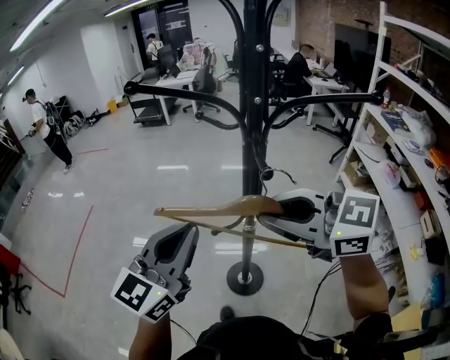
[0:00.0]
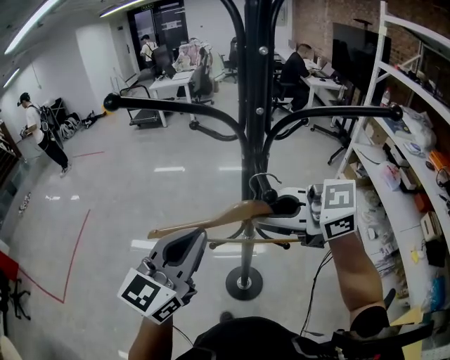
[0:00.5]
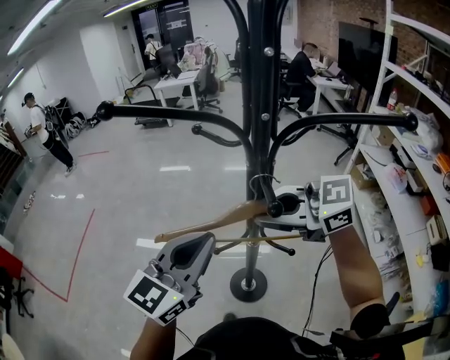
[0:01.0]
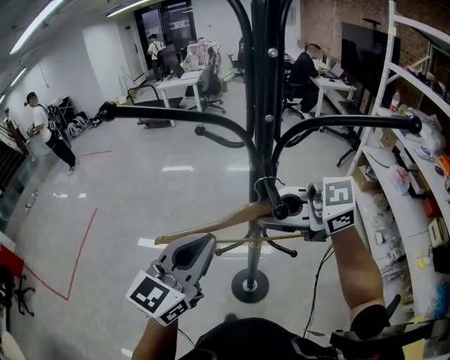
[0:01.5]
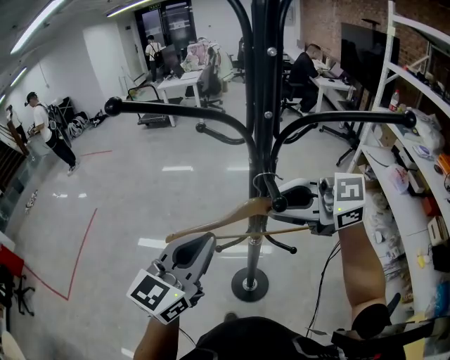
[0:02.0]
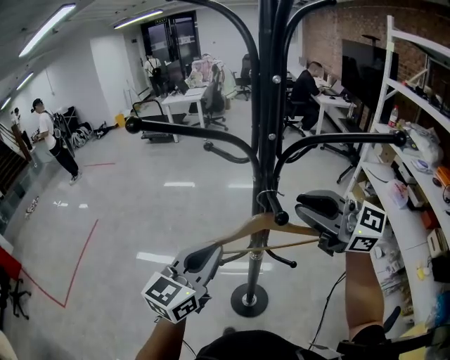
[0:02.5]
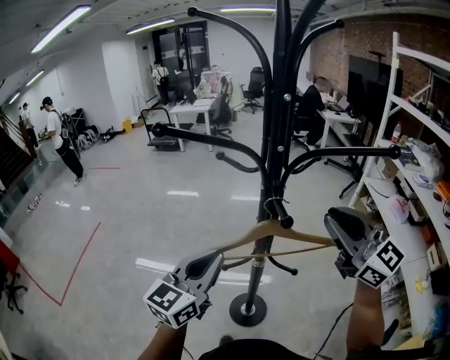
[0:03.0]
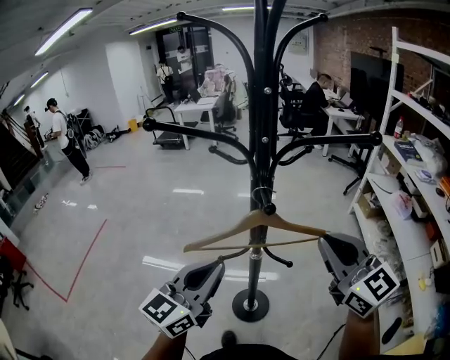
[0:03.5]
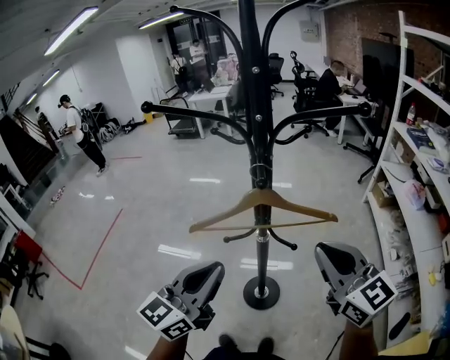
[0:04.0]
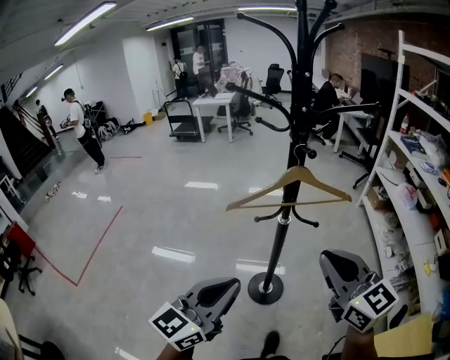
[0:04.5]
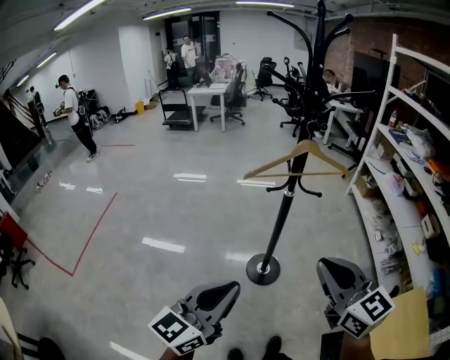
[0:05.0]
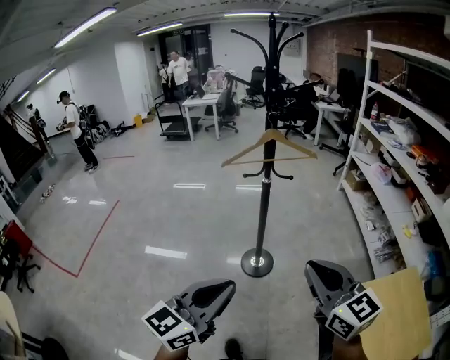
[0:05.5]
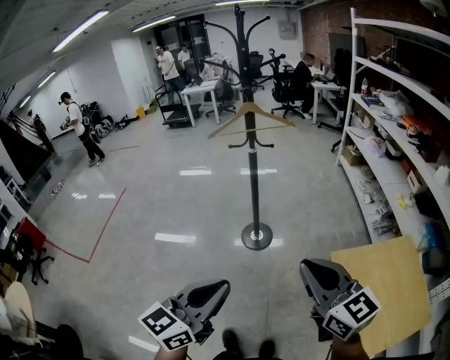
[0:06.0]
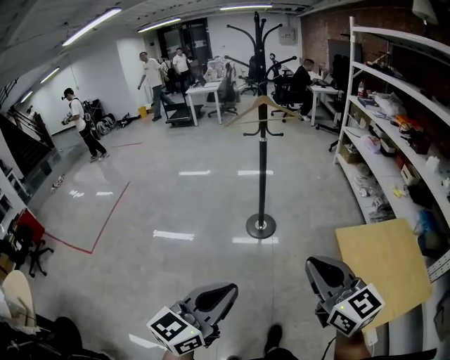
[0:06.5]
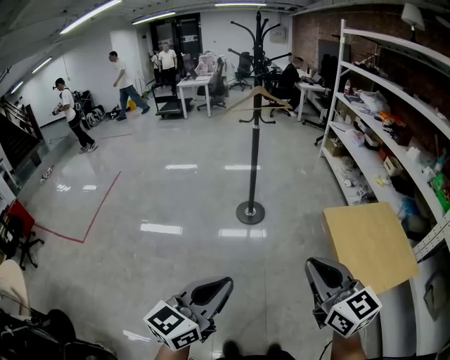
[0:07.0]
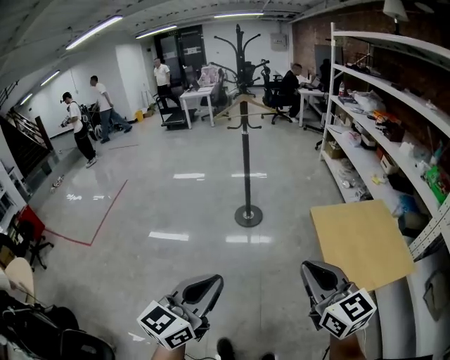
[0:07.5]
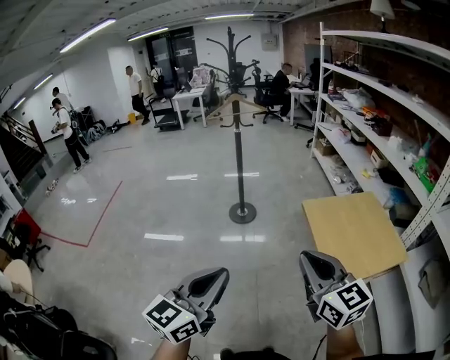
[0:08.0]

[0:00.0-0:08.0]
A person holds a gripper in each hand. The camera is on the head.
0:00.0 to 0:02.0: The left gripper ends up approximately 5 cm from where it was. Meanwhile the right gripper is displaced forward by approximately 5 cm.
0:02.0 to 0:04.0: The right gripper heads backward and to the right, covering approximately 15 cm, and changes its angle by roughly 50 degrees, while the left gripper goes approximately 10 cm backward.
0:04.0 to 0:06.0: Both grippers are carried backward, approximately 50 cm.
0:06.0 to 0:08.0: Both grippers travel together backward, approximately 30 cm.

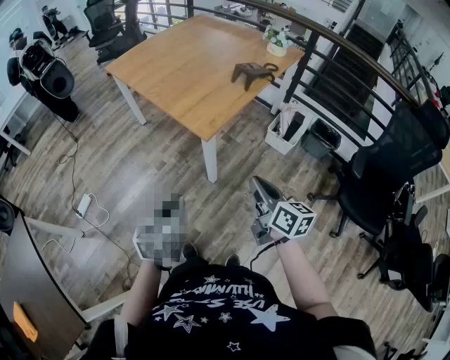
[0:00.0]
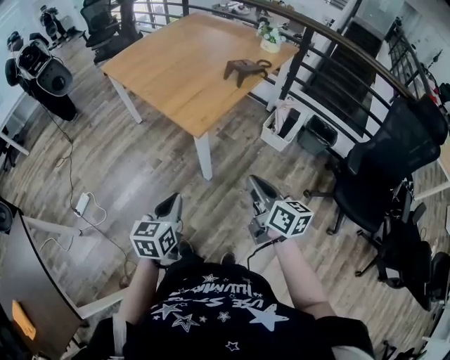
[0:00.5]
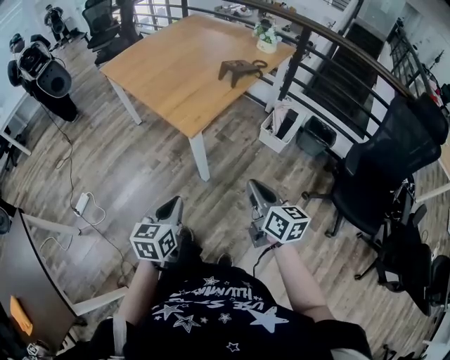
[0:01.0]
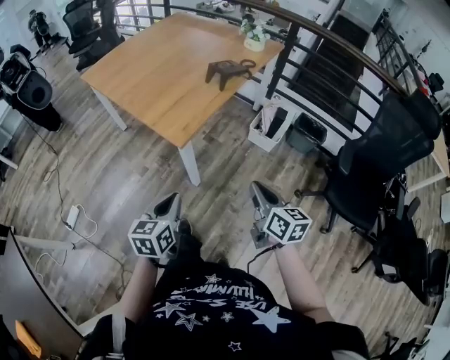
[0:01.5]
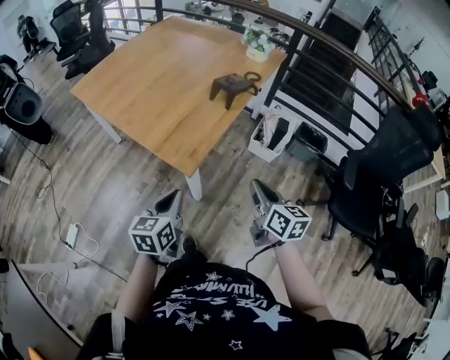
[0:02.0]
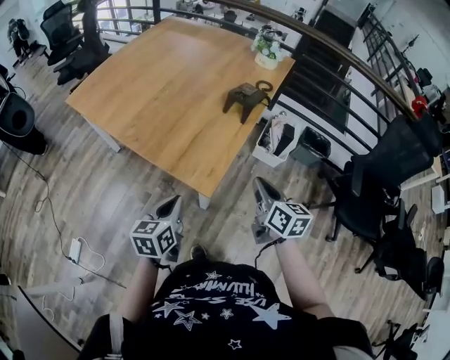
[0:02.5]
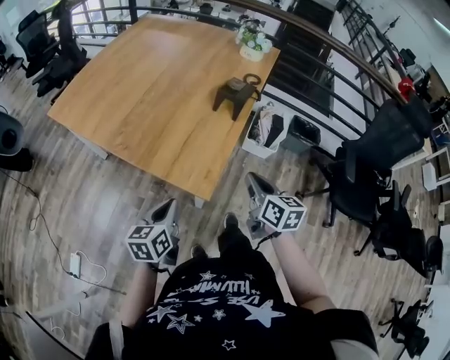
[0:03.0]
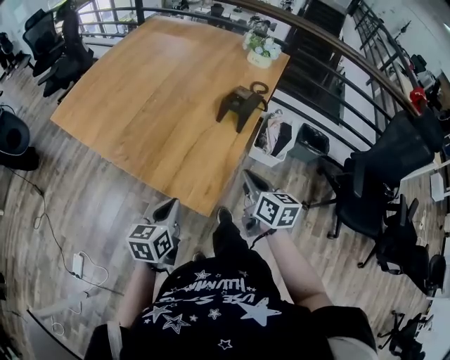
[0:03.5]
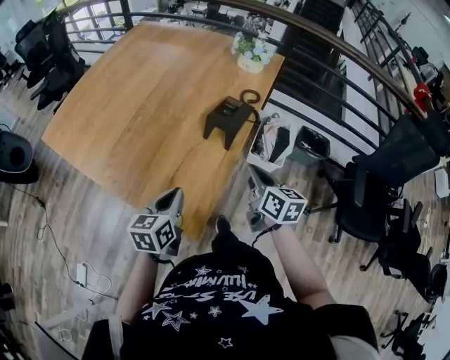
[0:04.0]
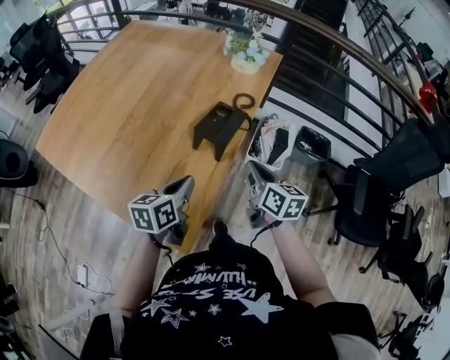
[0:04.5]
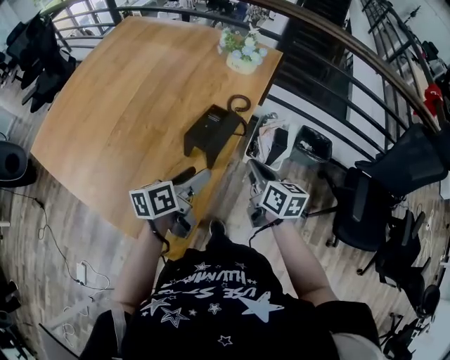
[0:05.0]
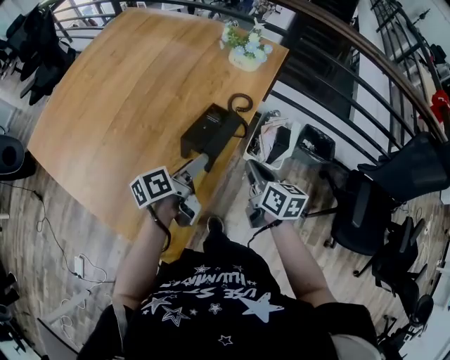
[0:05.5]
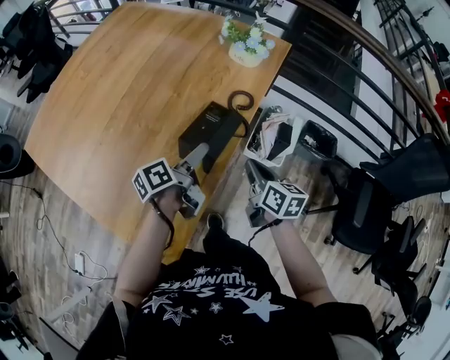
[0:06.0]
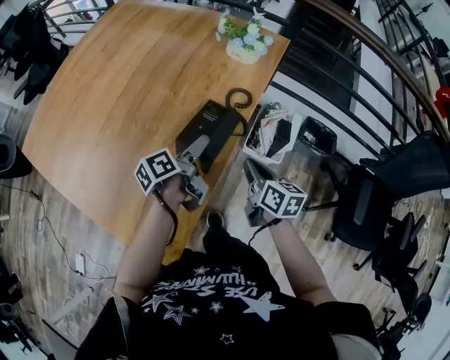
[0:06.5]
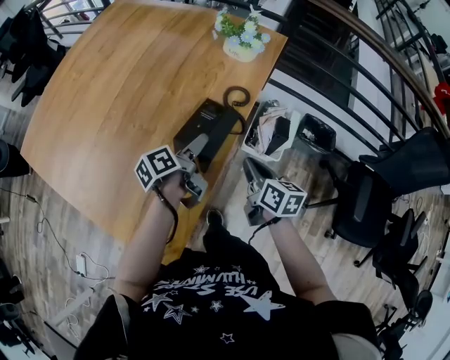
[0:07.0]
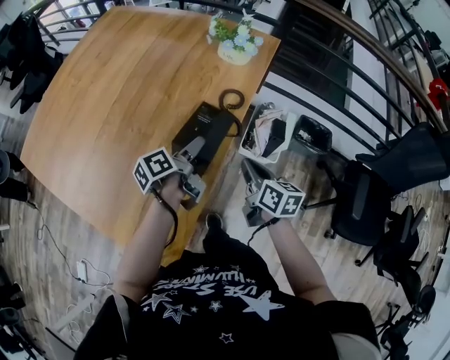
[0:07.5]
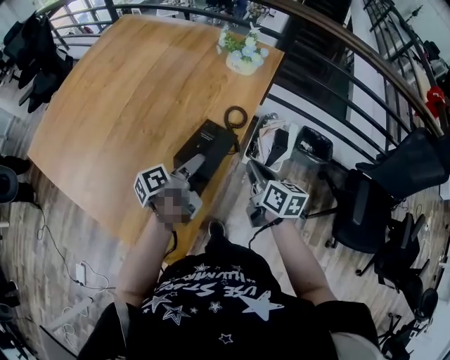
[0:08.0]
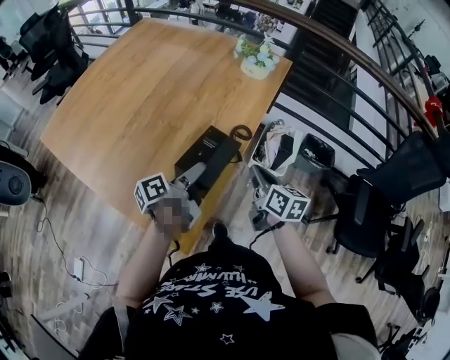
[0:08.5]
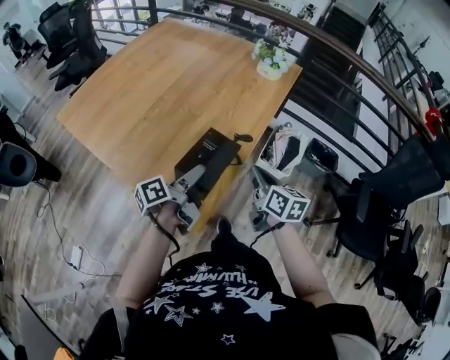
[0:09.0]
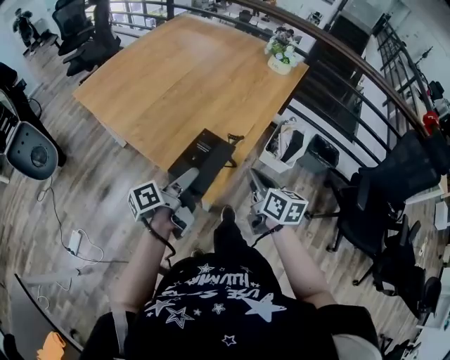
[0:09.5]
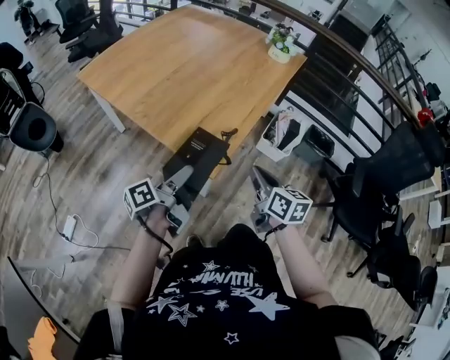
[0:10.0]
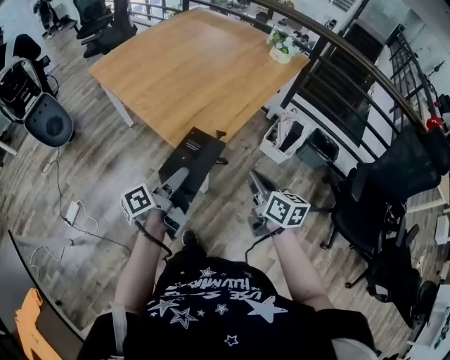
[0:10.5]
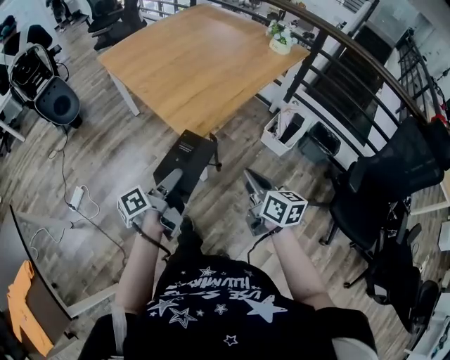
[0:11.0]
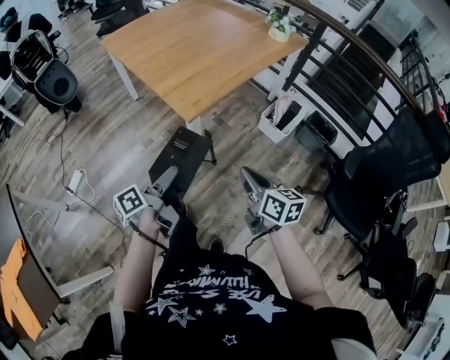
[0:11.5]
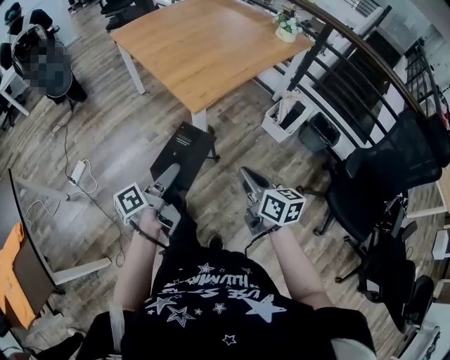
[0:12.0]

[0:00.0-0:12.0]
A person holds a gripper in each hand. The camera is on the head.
0:00.0 to 0:02.0: The grippers both shift forward by about 15 cm.
0:02.0 to 0:04.0: Both grippers move forward, about 25 cm.
0:04.0 to 0:06.0: The right gripper moves forward, downward and to the right, roughly 15 cm. Meanwhile the left gripper heads forward and to the right, covering some 25 cm, rolls counterclockwise, seen from behind, by about 50 degrees, and opens its fingers.
0:06.0 to 0:08.0: The left gripper closes.
0:08.0 to 0:10.0: The left gripper shifts about 40 cm backward and to the left. The right gripper is displaced backward by approximately 35 cm.
0:10.0 to 0:12.0: The grippers both shift backward by approximately 25 cm. The right gripper swivels approximately 20 degrees.

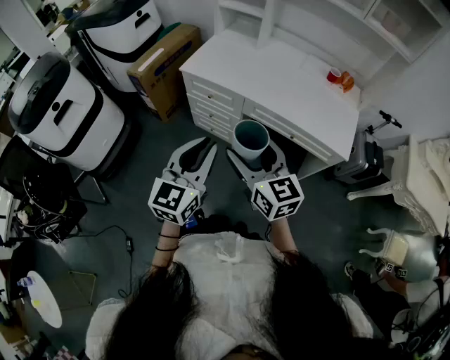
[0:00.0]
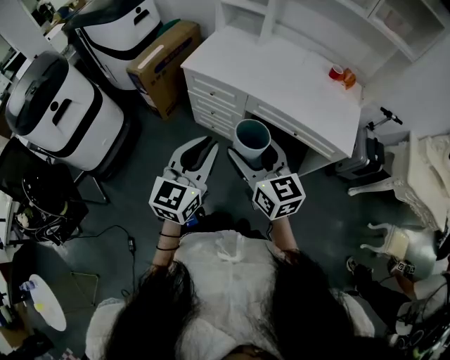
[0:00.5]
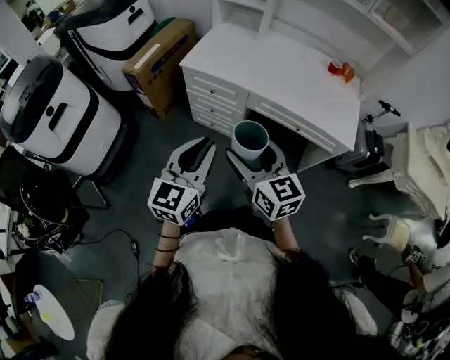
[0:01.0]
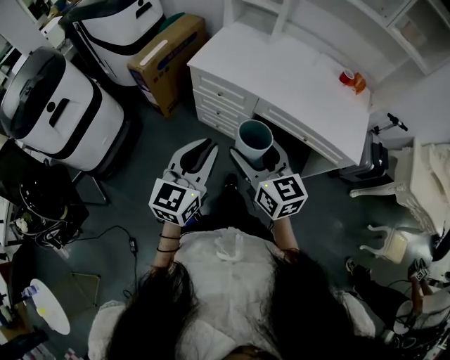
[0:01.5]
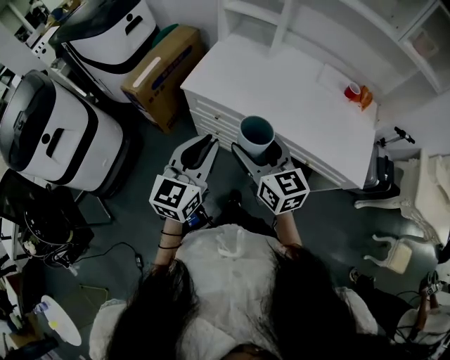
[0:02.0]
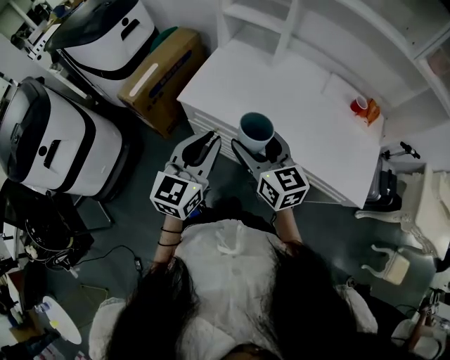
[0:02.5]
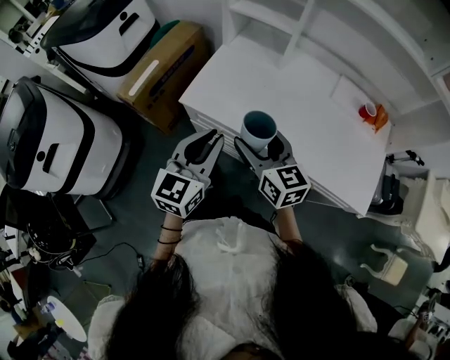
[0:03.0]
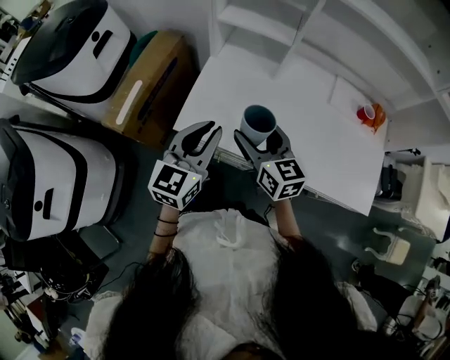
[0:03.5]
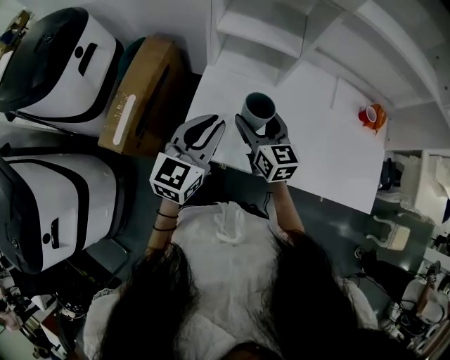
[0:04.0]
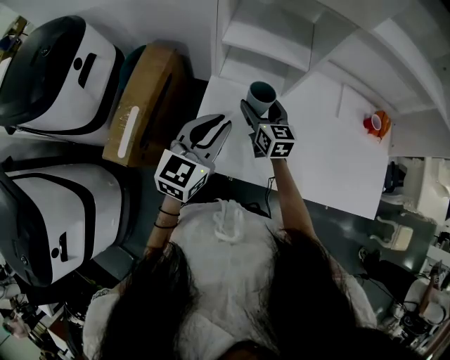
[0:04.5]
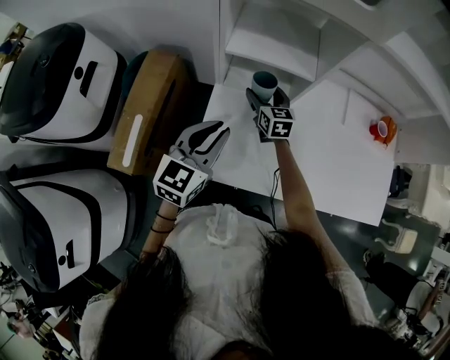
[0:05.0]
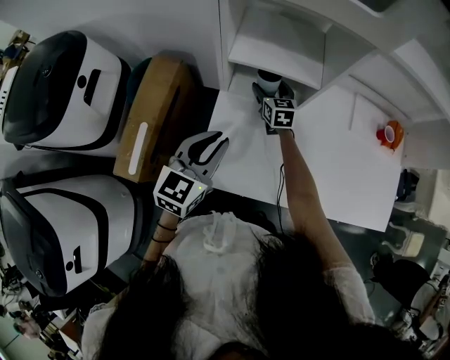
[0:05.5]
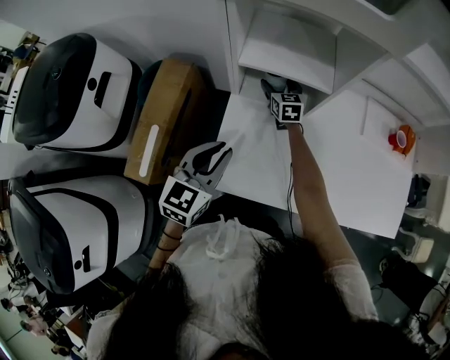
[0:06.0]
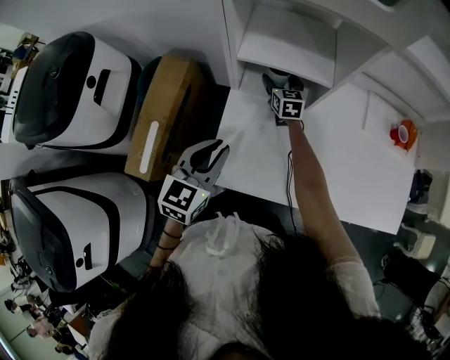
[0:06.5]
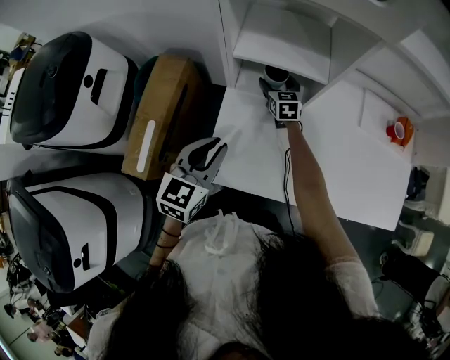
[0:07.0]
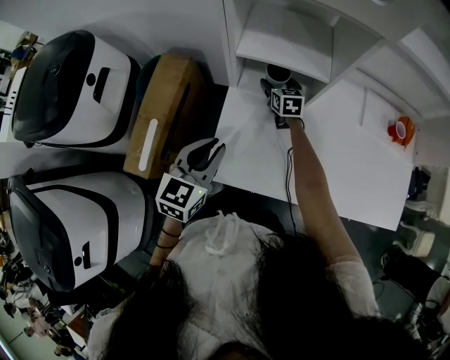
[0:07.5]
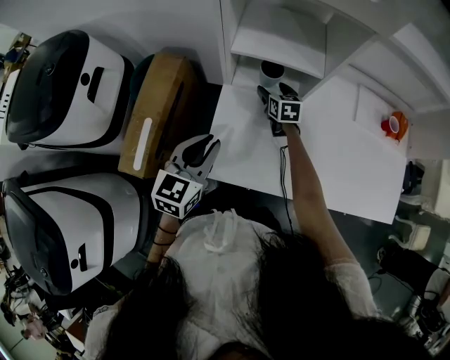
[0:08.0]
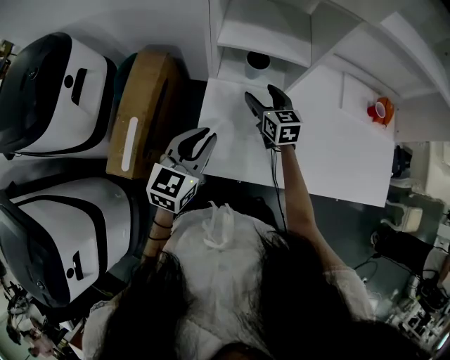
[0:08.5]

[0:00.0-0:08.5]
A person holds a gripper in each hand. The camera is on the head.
0:00.0 to 0:02.0: Both grippers move forward, about 20 cm.
0:02.0 to 0:04.0: The two grippers go some 40 cm forward.
0:04.0 to 0:06.5: The left gripper moves to the left and forward, approximately 10 cm; the right gripper shifts some 30 cm forward and downward.
0:06.5 to 0:08.5: The right gripper heads backward and upward, covering approximately 15 cm.
